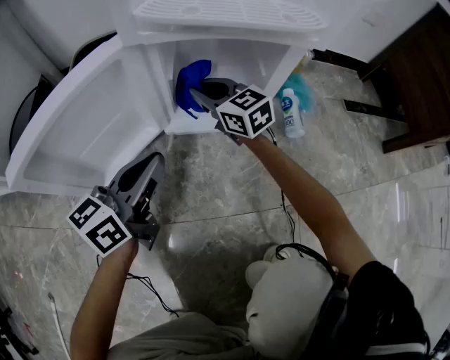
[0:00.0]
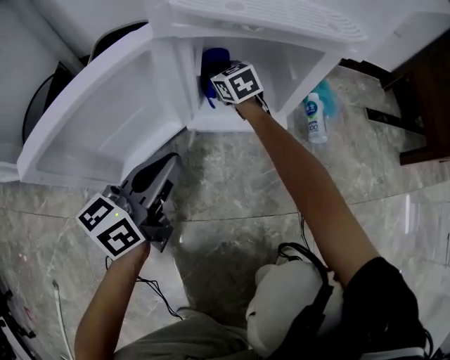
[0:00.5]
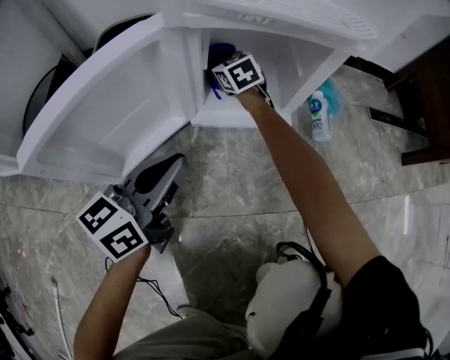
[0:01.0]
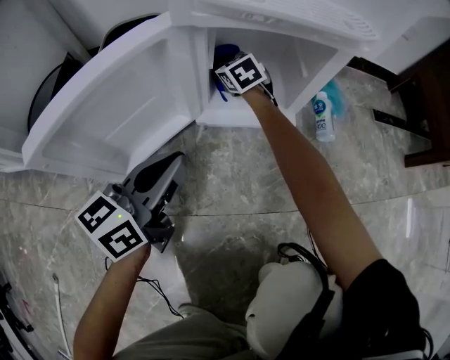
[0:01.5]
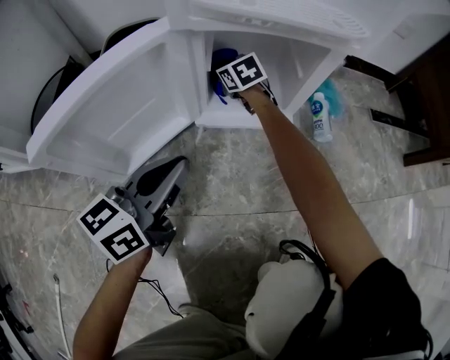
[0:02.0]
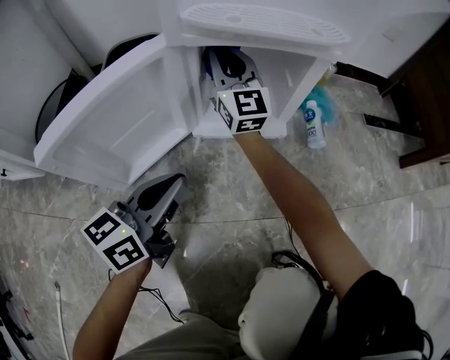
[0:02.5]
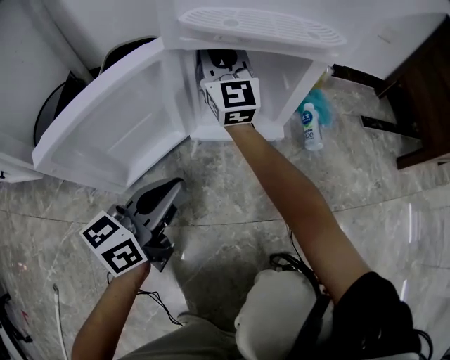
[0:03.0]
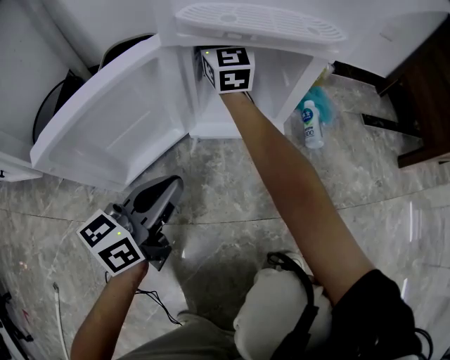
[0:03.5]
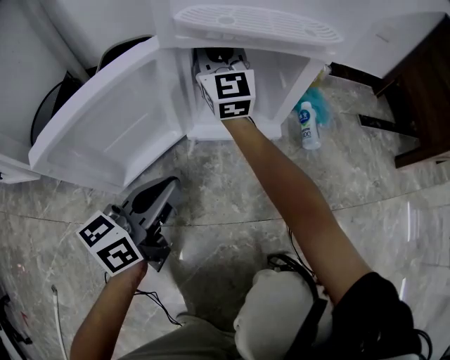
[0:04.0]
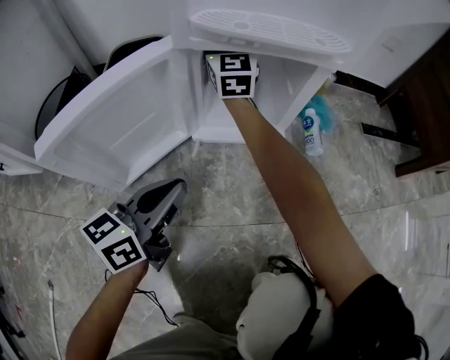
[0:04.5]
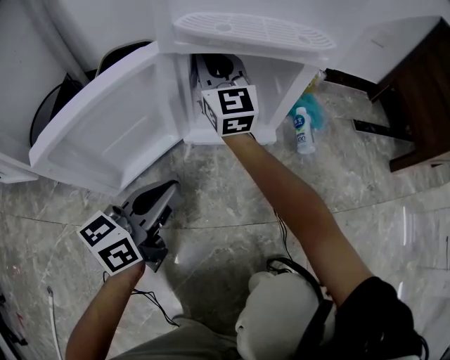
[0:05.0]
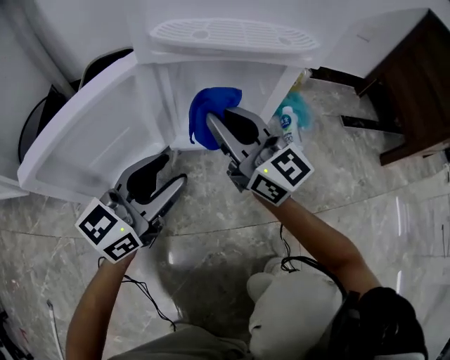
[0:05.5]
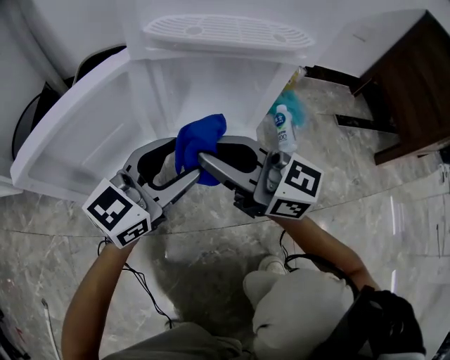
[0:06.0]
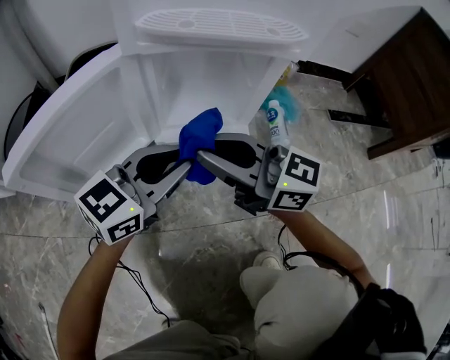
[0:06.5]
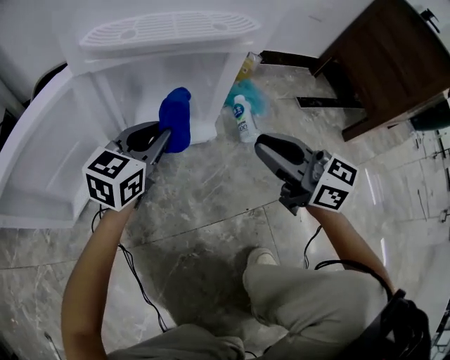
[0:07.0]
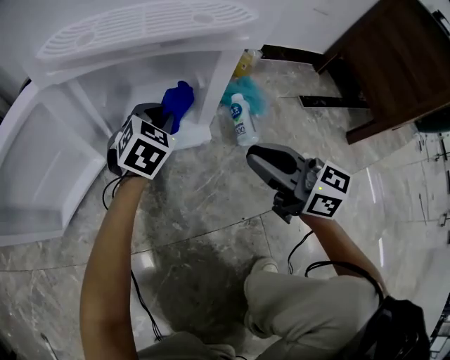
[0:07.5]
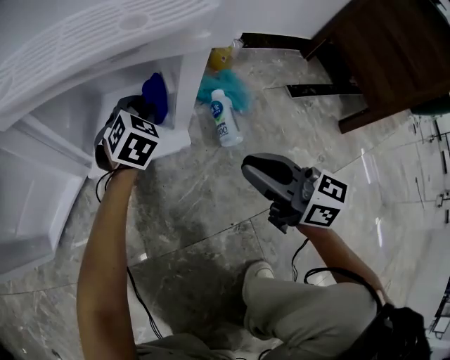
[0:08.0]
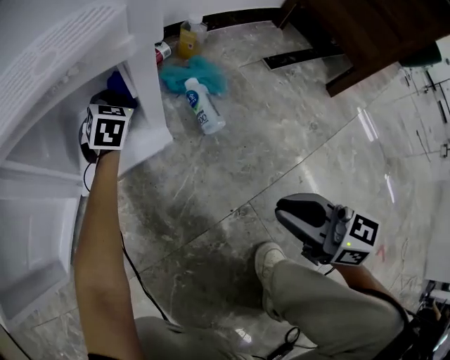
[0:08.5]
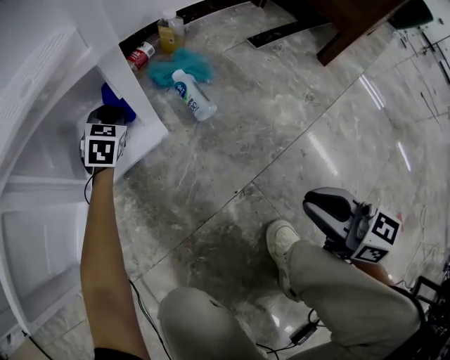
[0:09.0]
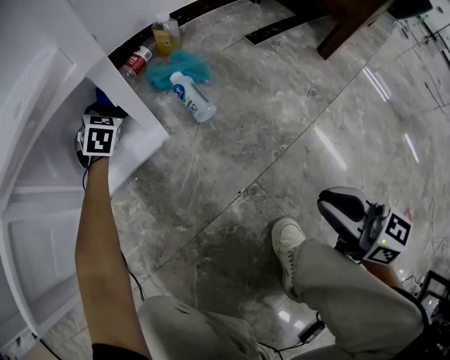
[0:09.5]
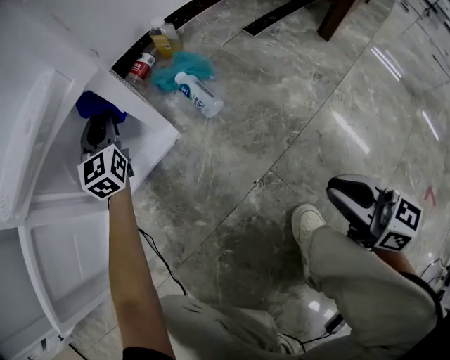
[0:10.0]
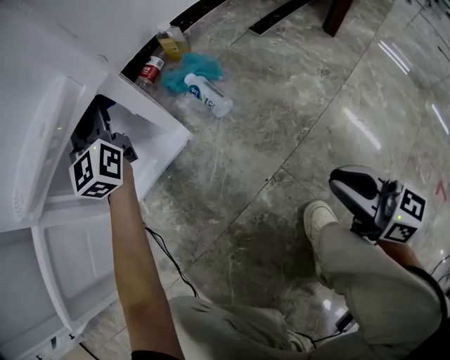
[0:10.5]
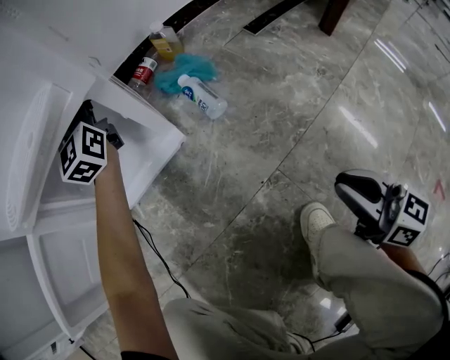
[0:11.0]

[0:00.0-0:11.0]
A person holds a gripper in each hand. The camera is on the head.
0:00.0 to 0:02.0: The right gripper shifts approximately 15 cm forward and downward, and rotates some 20 degrees.
0:02.0 to 0:03.5: The right gripper is displaced upward by some 25 cm, and angles its fingers upward, by about 50 degrees.
0:03.5 to 0:05.5: The right gripper moves forward and backward over roughly 20 cm, changing direction 2 times, and changes its angle by about 30 degrees, while the left gripper shifts by some 5 cm, rotates approximately 20 degrees, and opens.
0:05.5 to 0:07.5: The left gripper travels forward, to the right and downward by some 25 cm, tilts its fingers some 40 degrees downward, and closes up. Meanwhile the right gripper goes roughly 20 cm to the right, and rotates some 20 degrees.
0:07.5 to 0:09.0: The left gripper shifts about 10 cm forward and downward; the right gripper goes roughly 25 cm backward and to the right, and rotates roughly 30 degrees.
0:09.0 to 0:11.0: The left gripper goes some 25 cm upward, and angles its fingers upward, by some 50 degrees.

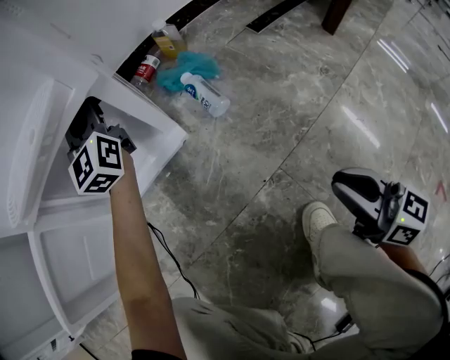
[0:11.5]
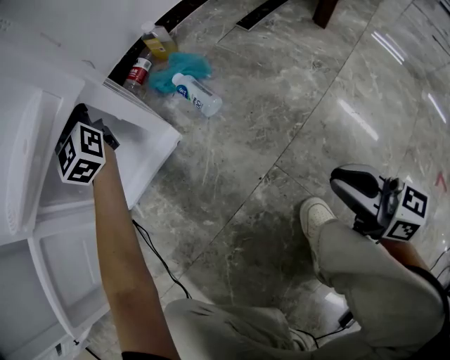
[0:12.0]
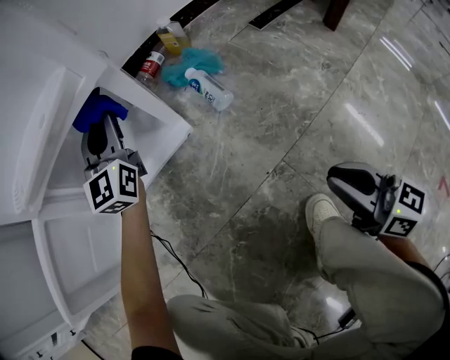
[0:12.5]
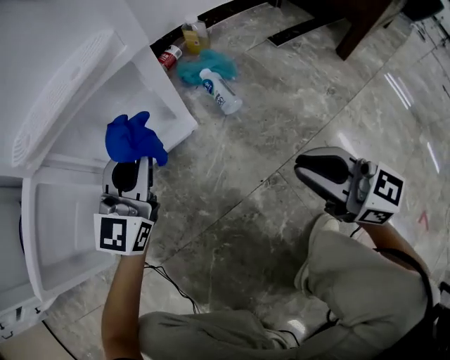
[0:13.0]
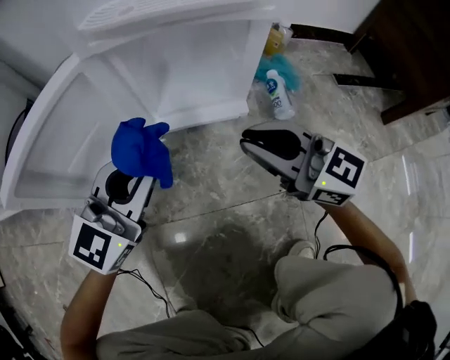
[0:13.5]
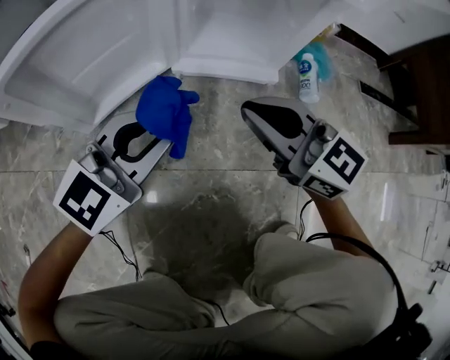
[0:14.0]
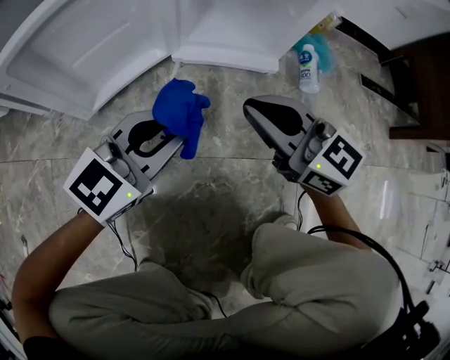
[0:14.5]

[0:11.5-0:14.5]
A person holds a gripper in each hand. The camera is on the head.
0:11.5 to 0:13.0: The right gripper travels to the left and forward by approximately 10 cm, and changes its angle by about 20 degrees; the left gripper shifts some 20 cm backward, and swivels some 30 degrees.
0:13.0 to 0:14.5: The right gripper shifts roughly 20 cm to the left, and changes its angle by approximately 30 degrees, while the left gripper shifts some 20 cm backward, to the left and downward.

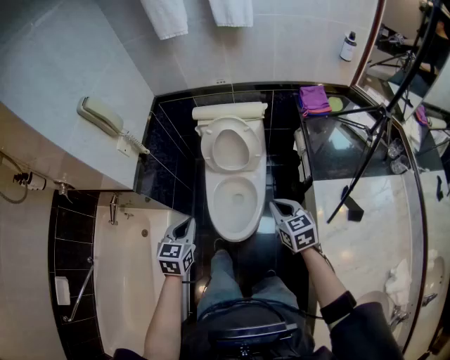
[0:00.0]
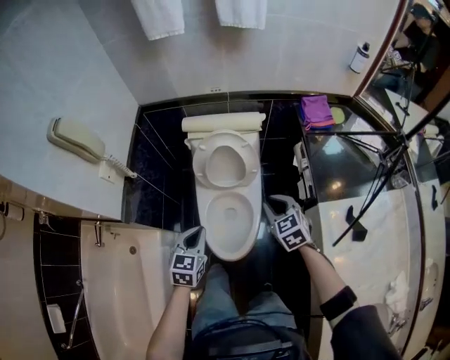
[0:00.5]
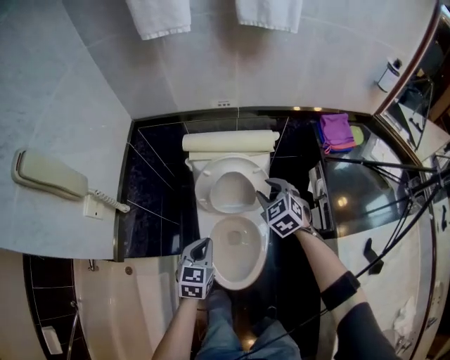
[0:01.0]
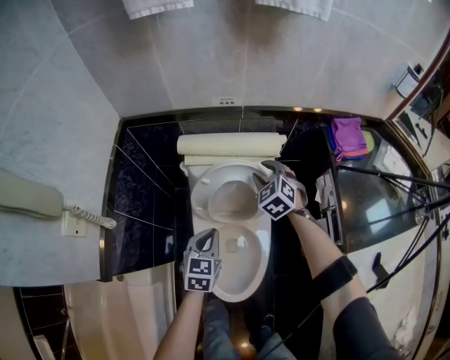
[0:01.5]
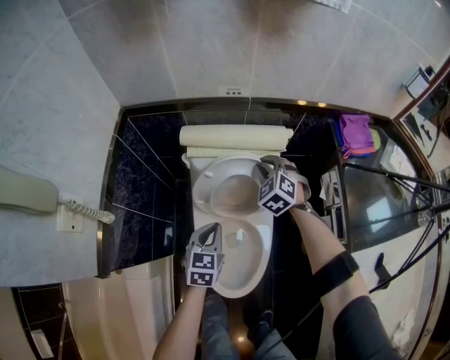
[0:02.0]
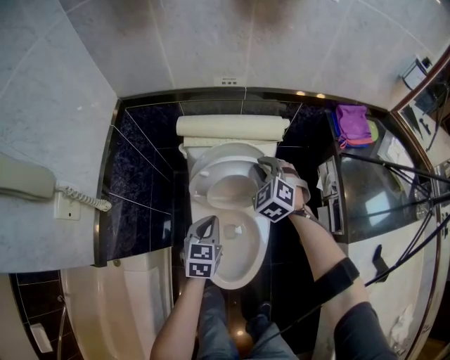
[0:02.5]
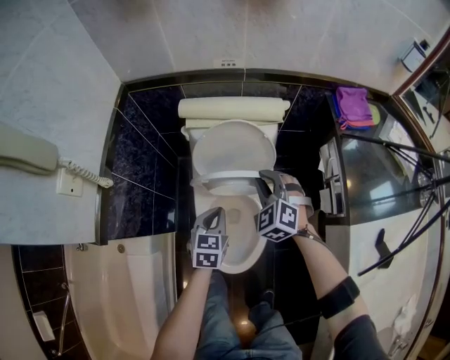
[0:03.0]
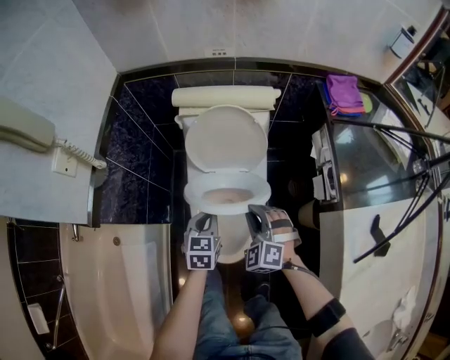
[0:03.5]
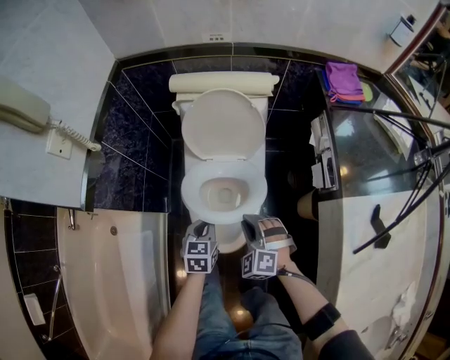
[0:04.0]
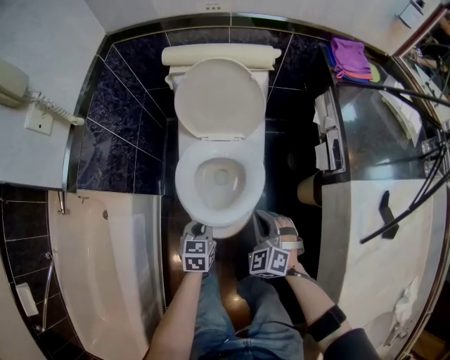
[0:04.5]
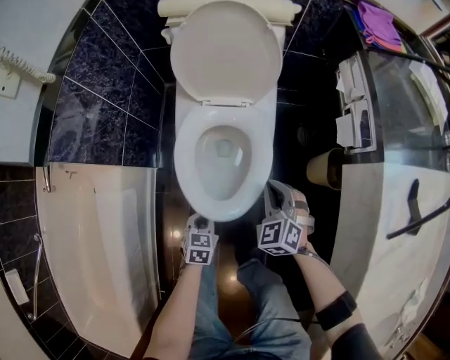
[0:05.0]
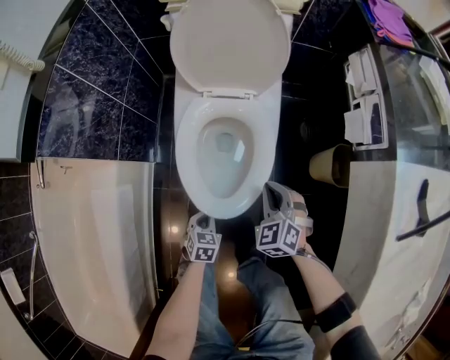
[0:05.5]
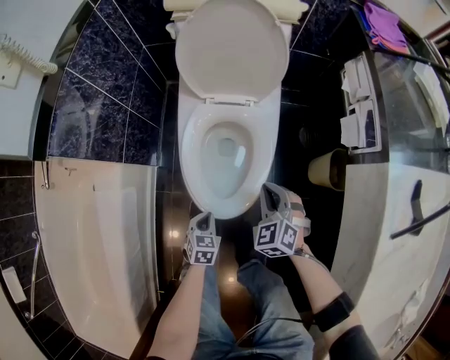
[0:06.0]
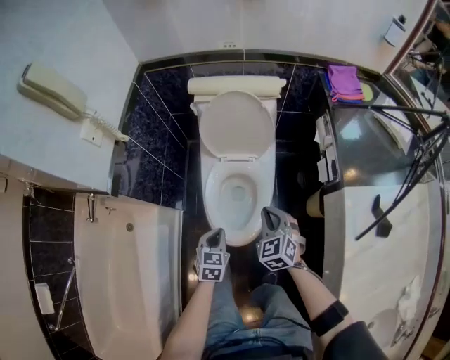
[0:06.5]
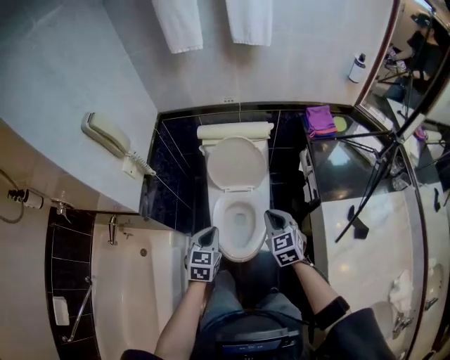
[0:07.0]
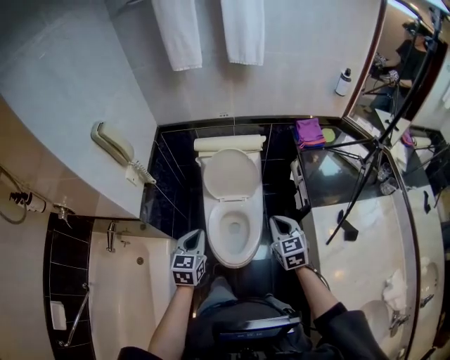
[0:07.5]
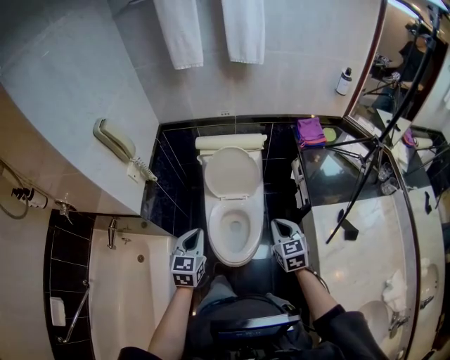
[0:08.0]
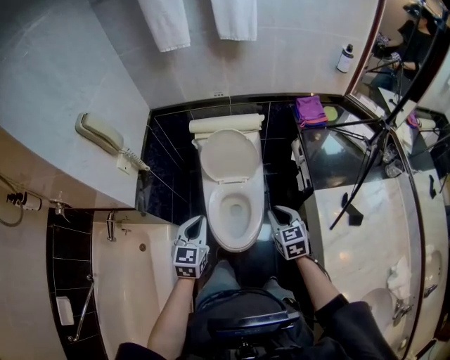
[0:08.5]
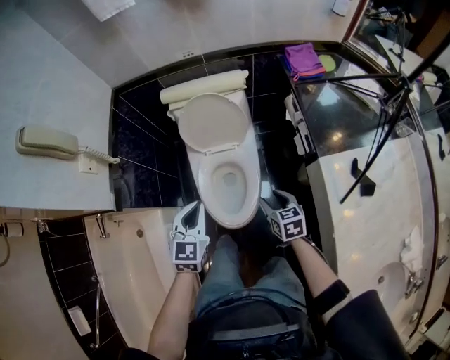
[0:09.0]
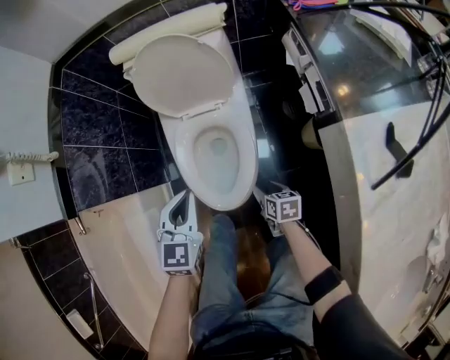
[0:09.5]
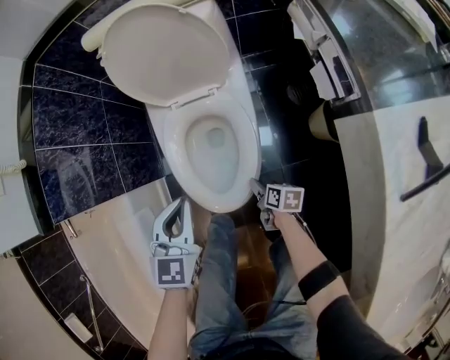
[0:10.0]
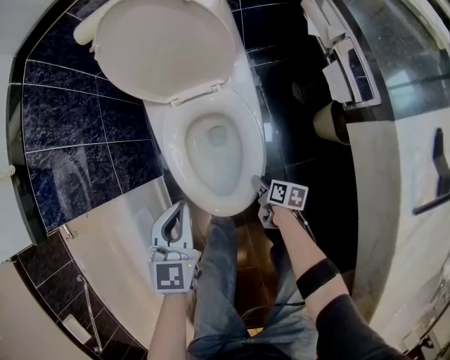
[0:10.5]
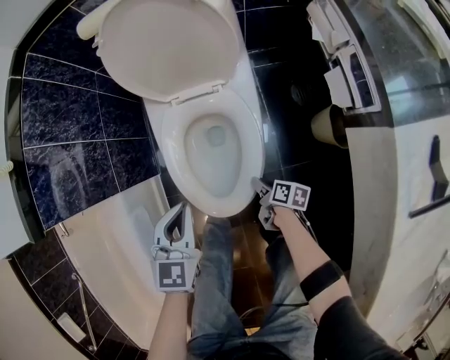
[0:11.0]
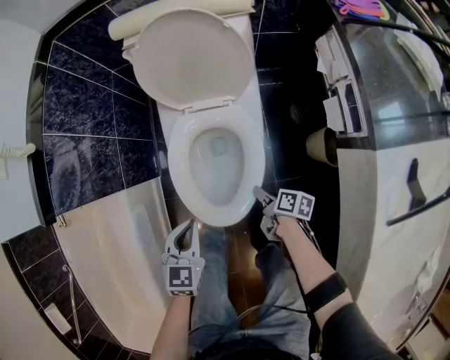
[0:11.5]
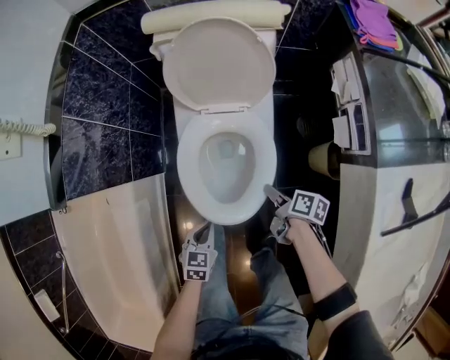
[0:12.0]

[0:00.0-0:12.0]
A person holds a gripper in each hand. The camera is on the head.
0:00.0 to 0:02.0: The right gripper moves forward, some 50 cm, twists roughly 40 degrees counterclockwise, seen from behind, and opens and closes again; the left gripper is displaced forward and downward by approximately 40 cm.
0:02.0 to 0:04.0: The right gripper shifts approximately 40 cm backward, while the left gripper moves backward and downward, roughly 20 cm.
0:04.0 to 0:06.0: The left gripper goes roughly 30 cm downward and backward, while the right gripper moves downward, roughly 15 cm, and rotates some 20 degrees.
0:06.0 to 0:08.0: The two grippers go about 50 cm upward. The left gripper changes its angle by approximately 30 degrees; the right gripper rotates some 40 degrees.
0:08.0 to 0:10.0: The left gripper travels downward by approximately 30 cm, while the right gripper is displaced downward by about 60 cm, twists some 60 degrees clockwise, seen from behind, and opens up.
0:10.0 to 0:12.0: The right gripper moves upward and forward, some 15 cm. The left gripper shifts roughly 20 cm downward, backward and to the left, and swivels about 20 degrees.
